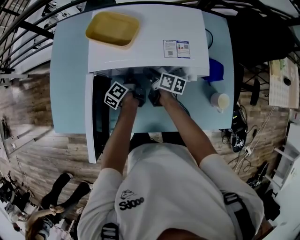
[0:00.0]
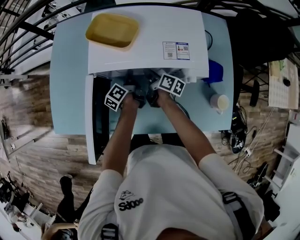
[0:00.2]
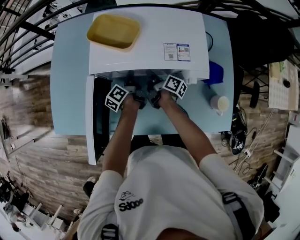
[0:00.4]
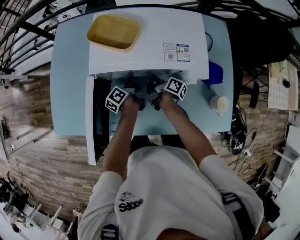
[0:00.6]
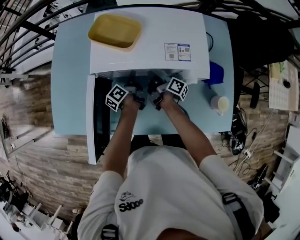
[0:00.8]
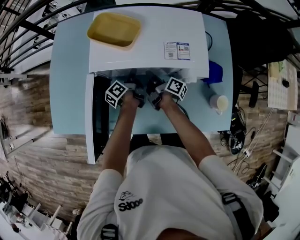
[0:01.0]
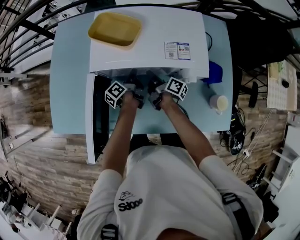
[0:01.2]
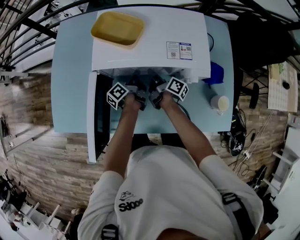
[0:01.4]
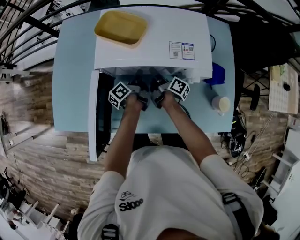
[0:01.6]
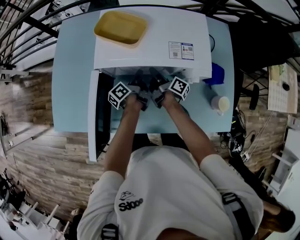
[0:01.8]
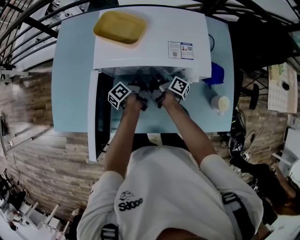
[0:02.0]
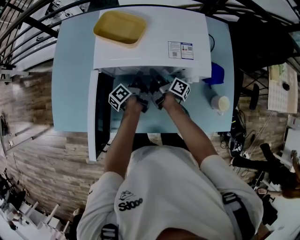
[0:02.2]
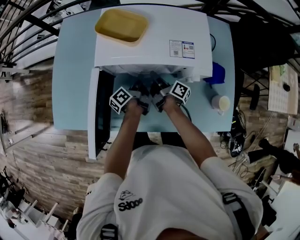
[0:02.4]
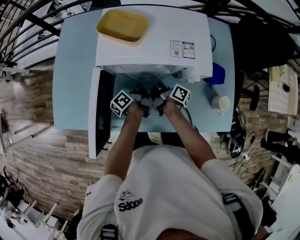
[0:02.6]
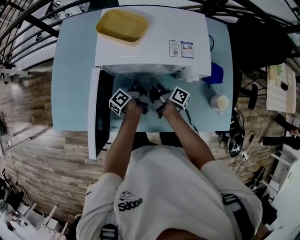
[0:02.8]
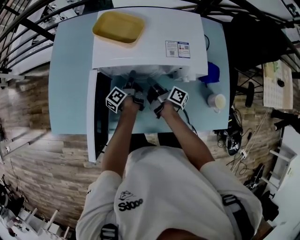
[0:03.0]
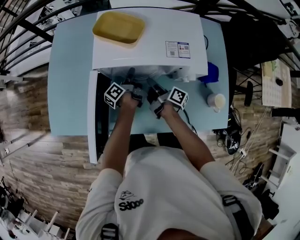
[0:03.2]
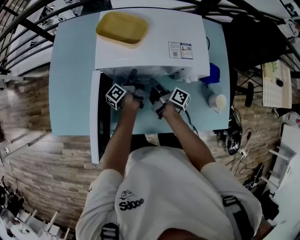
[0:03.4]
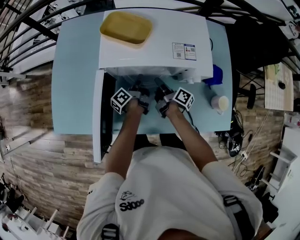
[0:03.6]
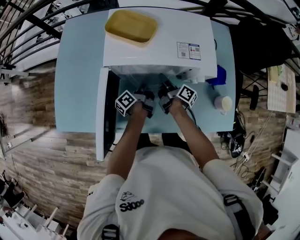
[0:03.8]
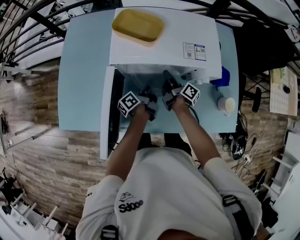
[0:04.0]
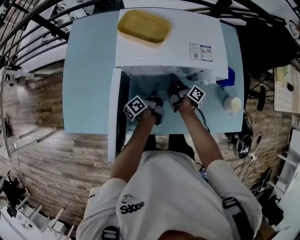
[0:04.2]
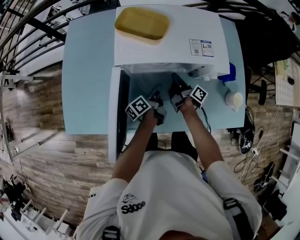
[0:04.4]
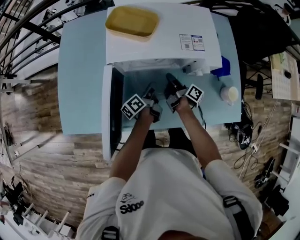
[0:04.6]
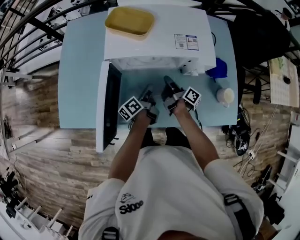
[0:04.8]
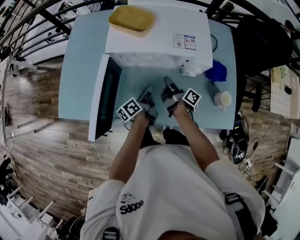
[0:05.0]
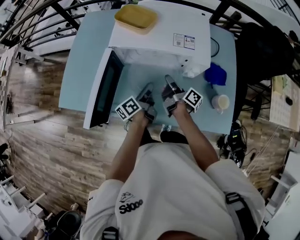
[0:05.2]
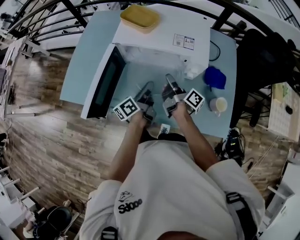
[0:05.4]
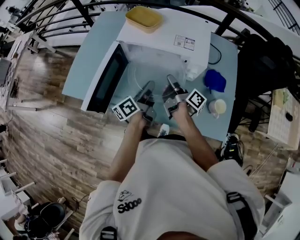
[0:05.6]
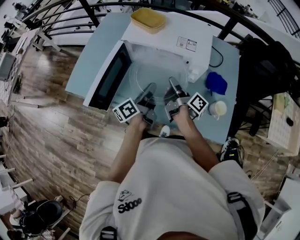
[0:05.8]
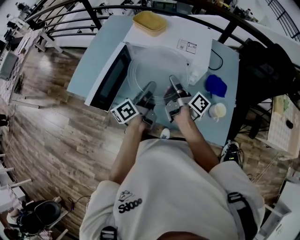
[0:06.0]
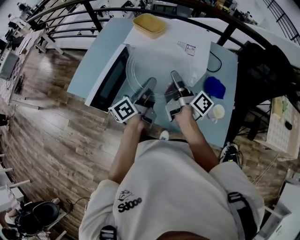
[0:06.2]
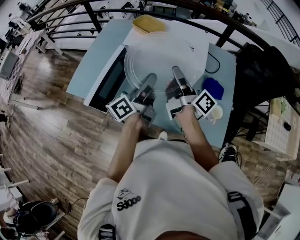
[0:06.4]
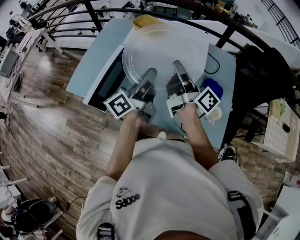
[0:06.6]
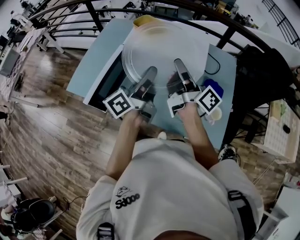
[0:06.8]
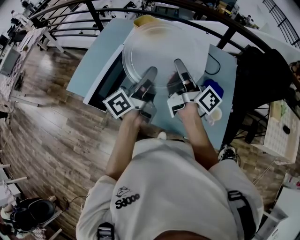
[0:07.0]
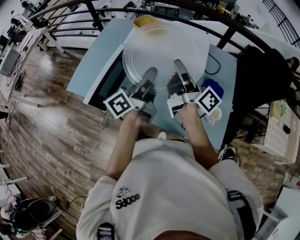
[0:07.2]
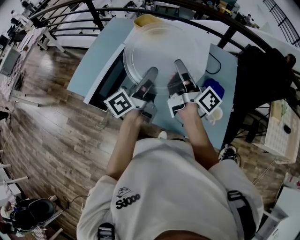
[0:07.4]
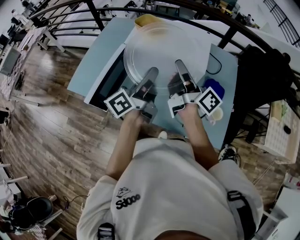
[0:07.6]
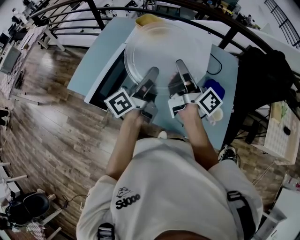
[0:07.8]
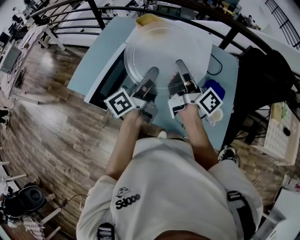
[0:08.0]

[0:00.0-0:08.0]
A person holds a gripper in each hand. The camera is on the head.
0:00.0 to 0:01.6: The right gripper rotates about 30 degrees, and closes, then opens again.
0:01.6 to 0:03.2: The right gripper ends up some 5 cm from where it was.
0:03.2 to 0:04.8: The left gripper moves backward, some 10 cm. Meanwhile the right gripper moves roughly 5 cm, and opens, then closes once more.
0:04.8 to 0:06.4: The right gripper goes approximately 30 cm upward, and turns by about 30 degrees; the left gripper goes approximately 30 cm upward and backward, and swivels approximately 30 degrees.
0:06.4 to 0:08.0: The grippers move only a little.

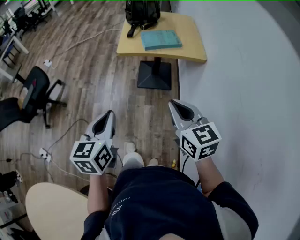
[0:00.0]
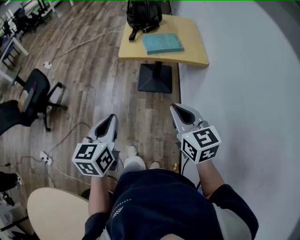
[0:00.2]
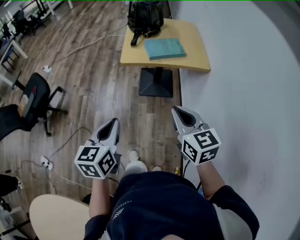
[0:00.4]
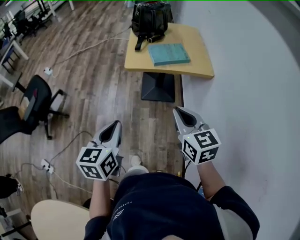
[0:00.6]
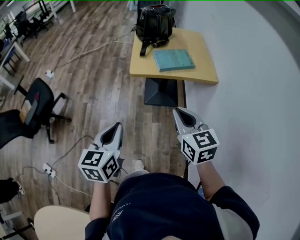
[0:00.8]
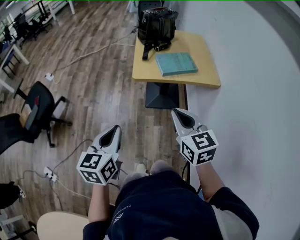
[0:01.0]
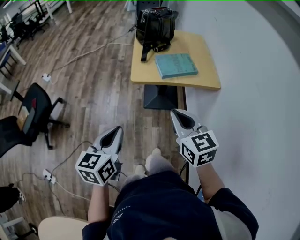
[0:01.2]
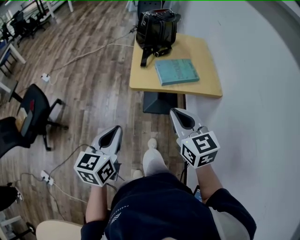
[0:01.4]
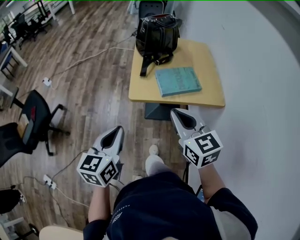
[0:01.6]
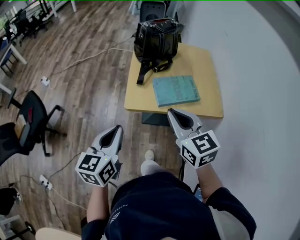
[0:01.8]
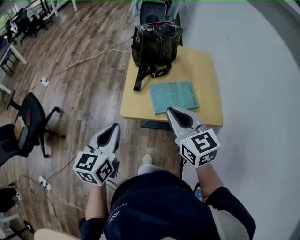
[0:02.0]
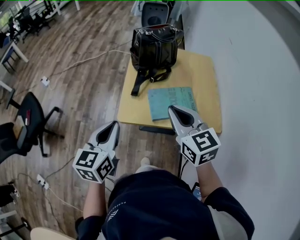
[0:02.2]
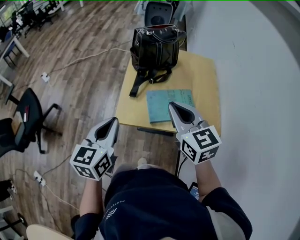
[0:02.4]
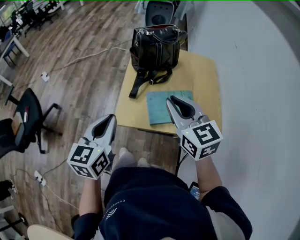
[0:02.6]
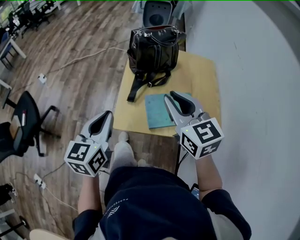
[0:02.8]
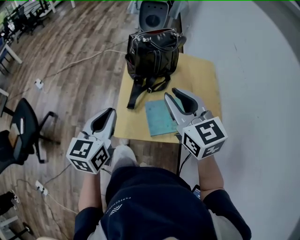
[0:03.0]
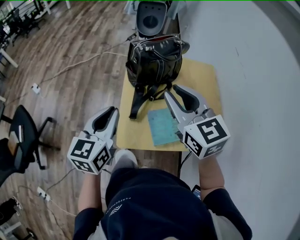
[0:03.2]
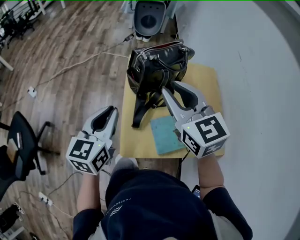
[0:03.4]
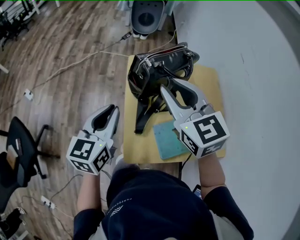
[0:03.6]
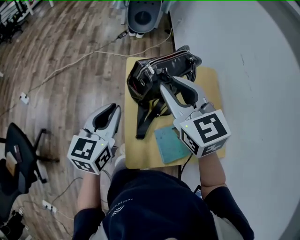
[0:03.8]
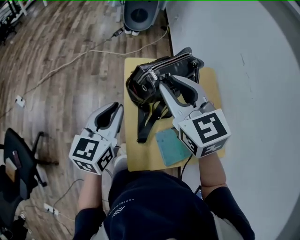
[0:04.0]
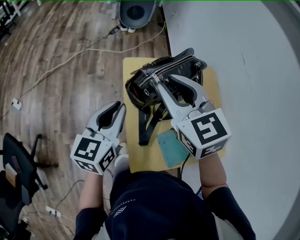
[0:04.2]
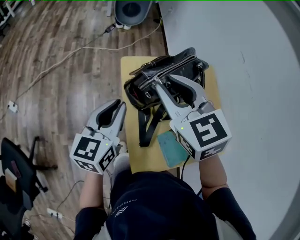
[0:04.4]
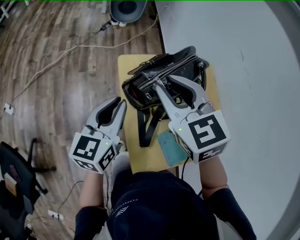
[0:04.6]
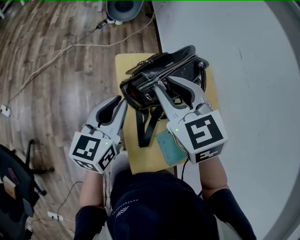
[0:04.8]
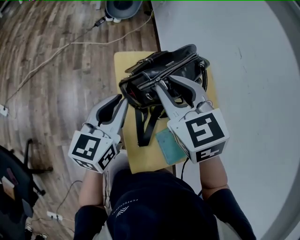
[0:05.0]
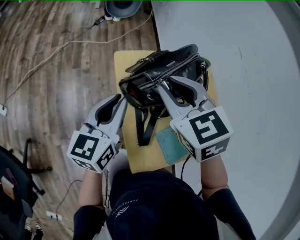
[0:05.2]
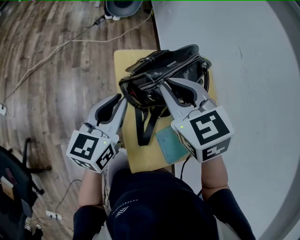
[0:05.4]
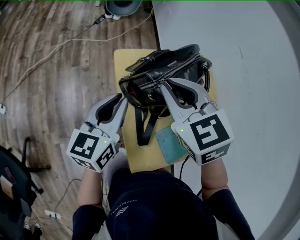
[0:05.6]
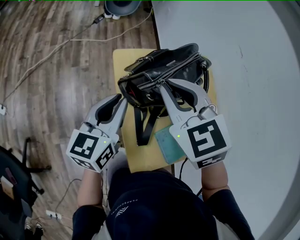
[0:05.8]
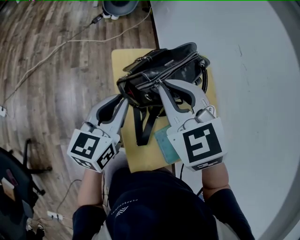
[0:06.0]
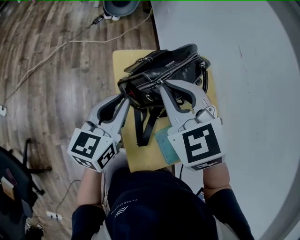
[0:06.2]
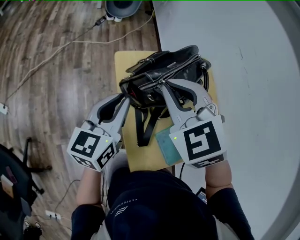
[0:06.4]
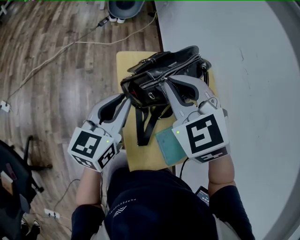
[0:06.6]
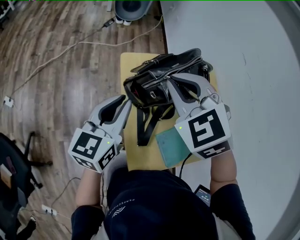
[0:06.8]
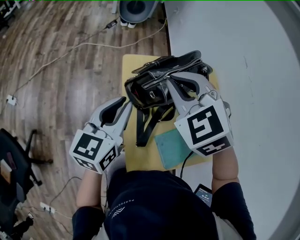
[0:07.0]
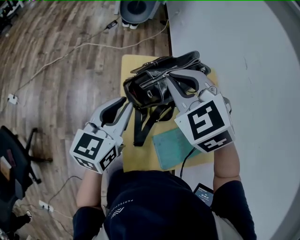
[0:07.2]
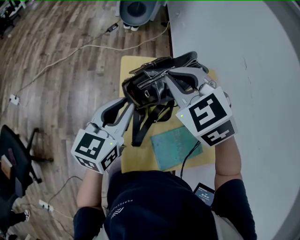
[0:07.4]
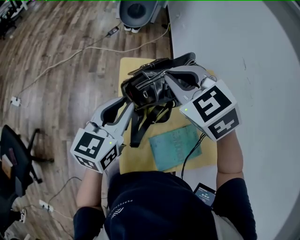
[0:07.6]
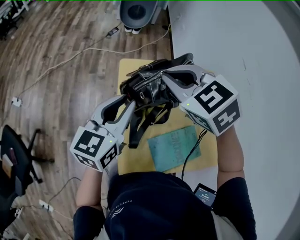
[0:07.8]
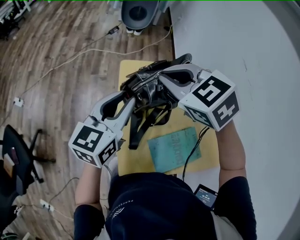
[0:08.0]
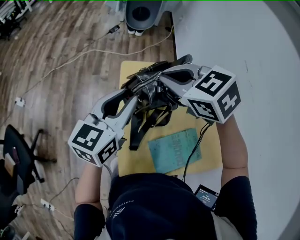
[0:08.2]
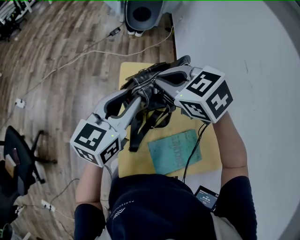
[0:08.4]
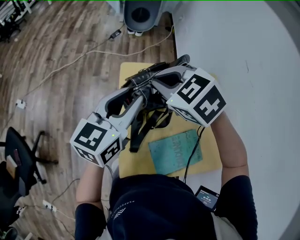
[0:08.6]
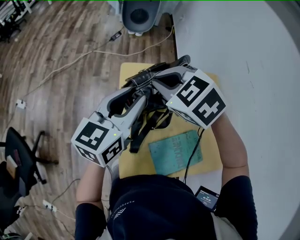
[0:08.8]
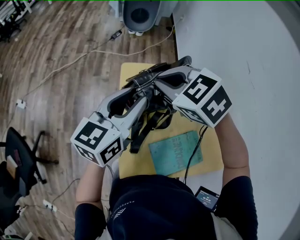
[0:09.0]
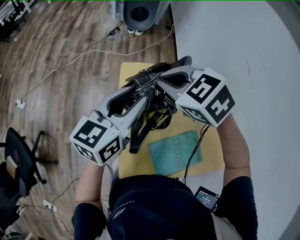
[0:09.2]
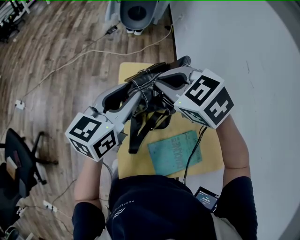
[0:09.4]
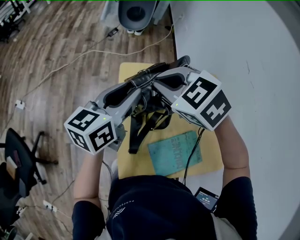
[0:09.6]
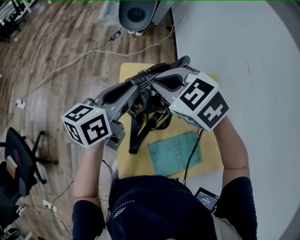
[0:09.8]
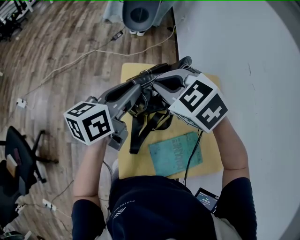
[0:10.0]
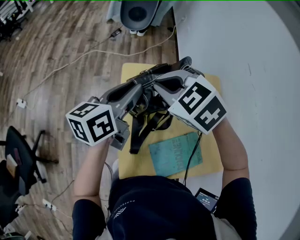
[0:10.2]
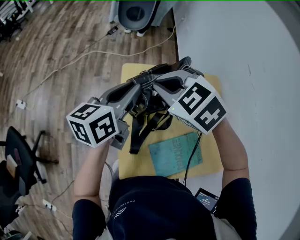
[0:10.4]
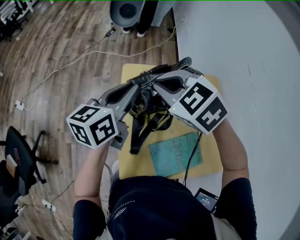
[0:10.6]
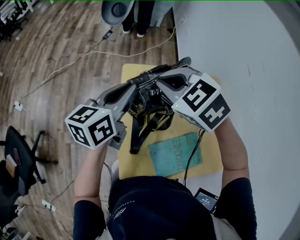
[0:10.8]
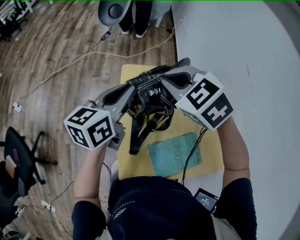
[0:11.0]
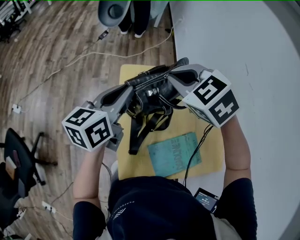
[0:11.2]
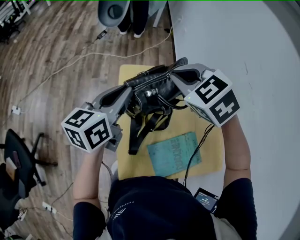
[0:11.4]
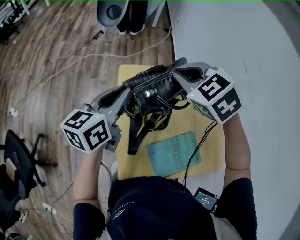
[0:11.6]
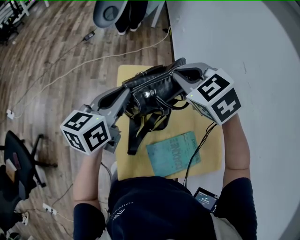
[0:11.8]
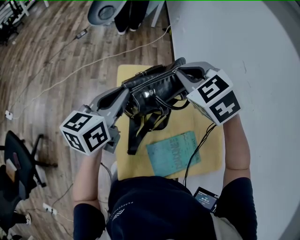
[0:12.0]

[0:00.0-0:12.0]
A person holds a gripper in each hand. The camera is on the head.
0:00.0 to 0:01.6: Both grippers move forward, some 25 cm.
0:01.6 to 0:03.0: The two grippers go some 25 cm forward. The right gripper opens.
0:03.0 to 0:04.4: The left gripper is displaced forward by roughly 25 cm; the right gripper travels forward and to the left by approximately 25 cm.
0:04.4 to 0:06.0: The right gripper closes its fingers.
0:06.0 to 0:07.6: The left gripper shifts by some 5 cm.
0:07.6 to 0:09.0: The left gripper changes place by roughly 5 cm.
0:09.0 to 0:10.4: There are only small adjustments of the grippers.
0:10.4 to 0:12.0: The right gripper moves to the right, roughly 5 cm.

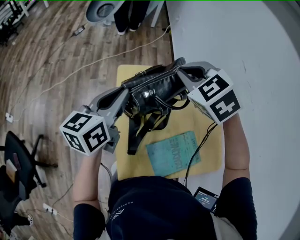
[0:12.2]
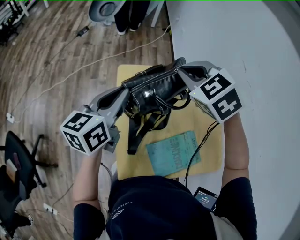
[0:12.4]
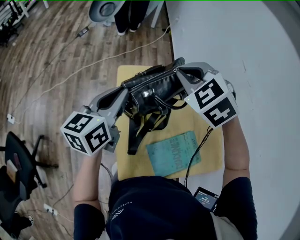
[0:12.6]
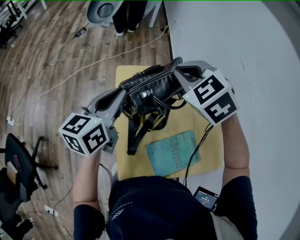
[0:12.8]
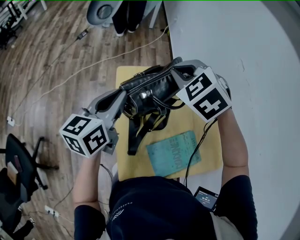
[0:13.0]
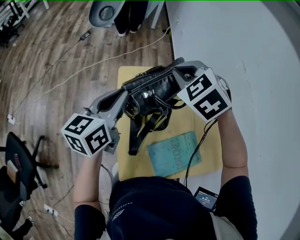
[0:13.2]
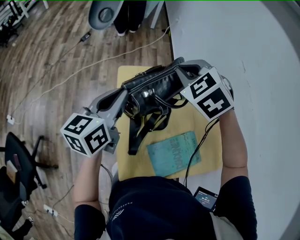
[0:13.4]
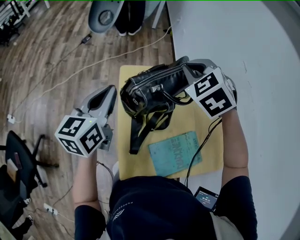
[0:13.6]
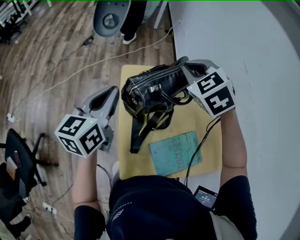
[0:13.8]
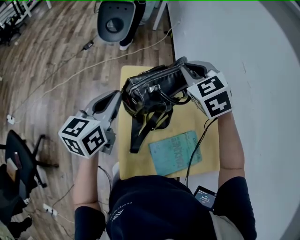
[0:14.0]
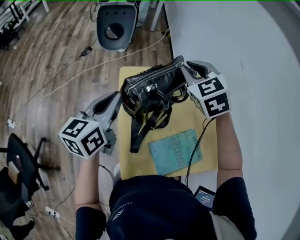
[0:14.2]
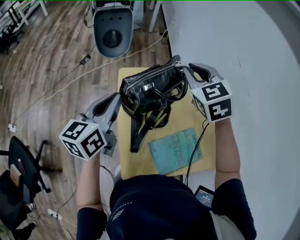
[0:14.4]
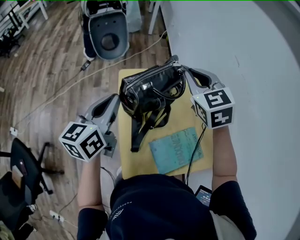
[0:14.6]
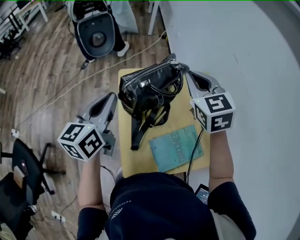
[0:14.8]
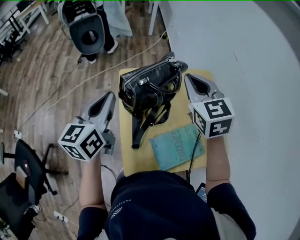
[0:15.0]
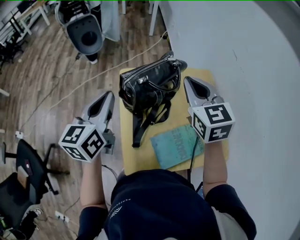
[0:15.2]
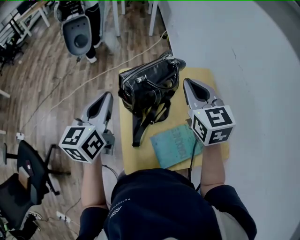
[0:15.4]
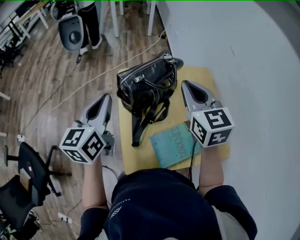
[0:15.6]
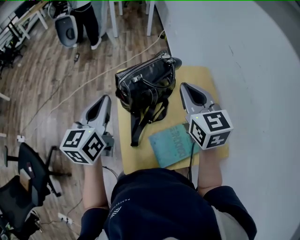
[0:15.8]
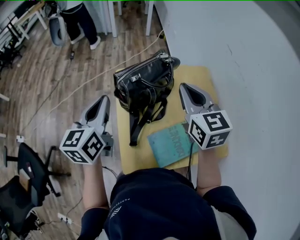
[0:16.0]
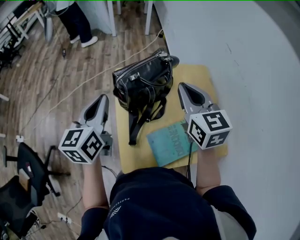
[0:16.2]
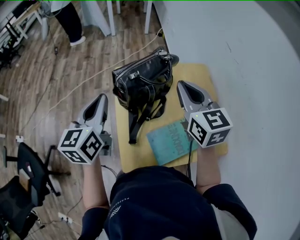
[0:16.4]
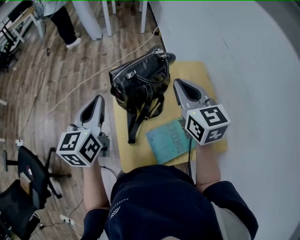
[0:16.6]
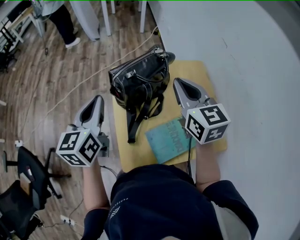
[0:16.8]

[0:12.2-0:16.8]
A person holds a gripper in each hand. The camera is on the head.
0:12.2 to 0:13.8: The grippers move only a little.
0:13.8 to 0:15.2: The right gripper heads backward and to the right, covering roughly 10 cm, and turns by about 40 degrees; the left gripper moves roughly 5 cm.
0:15.2 to 0:16.8: The grippers make only small movements.
